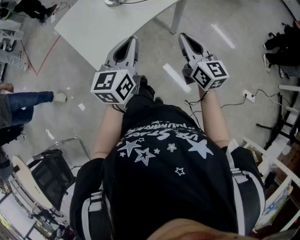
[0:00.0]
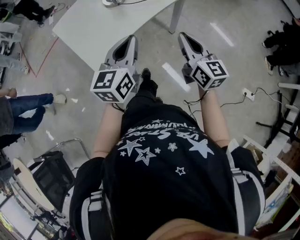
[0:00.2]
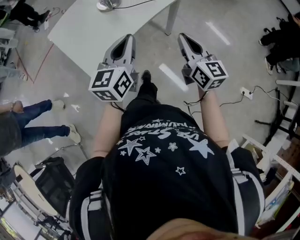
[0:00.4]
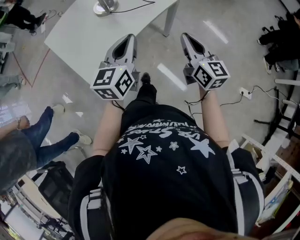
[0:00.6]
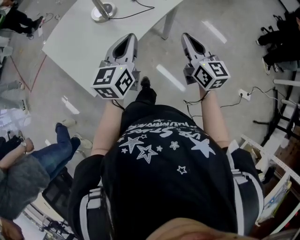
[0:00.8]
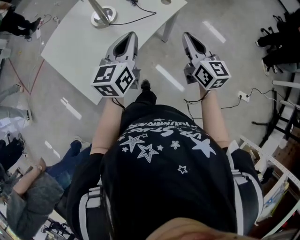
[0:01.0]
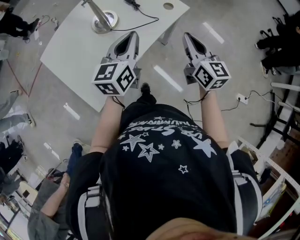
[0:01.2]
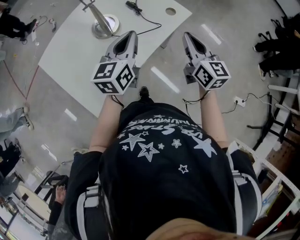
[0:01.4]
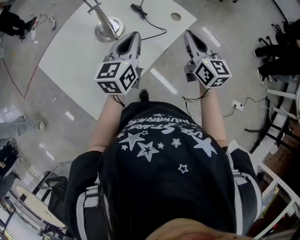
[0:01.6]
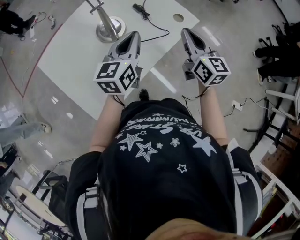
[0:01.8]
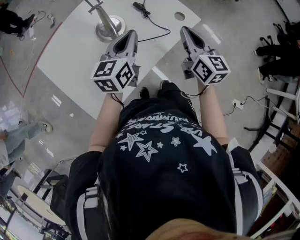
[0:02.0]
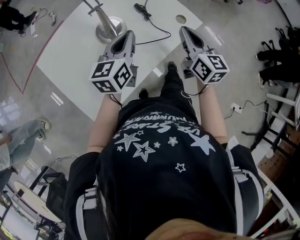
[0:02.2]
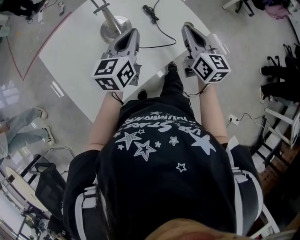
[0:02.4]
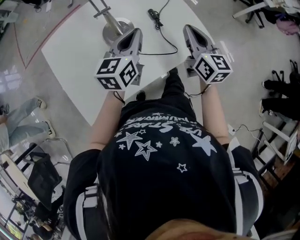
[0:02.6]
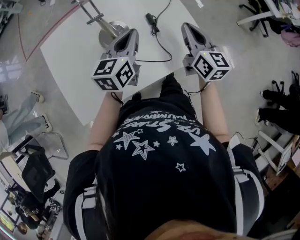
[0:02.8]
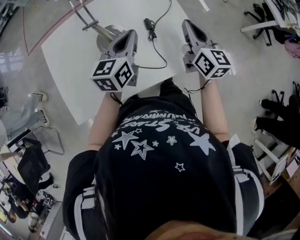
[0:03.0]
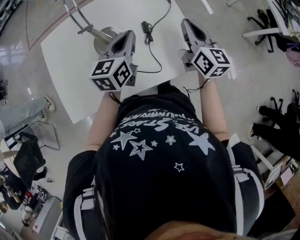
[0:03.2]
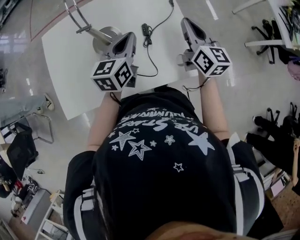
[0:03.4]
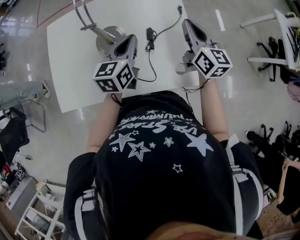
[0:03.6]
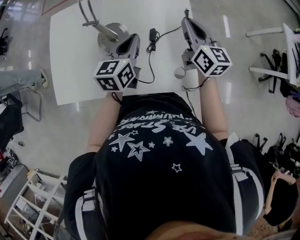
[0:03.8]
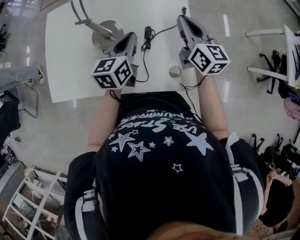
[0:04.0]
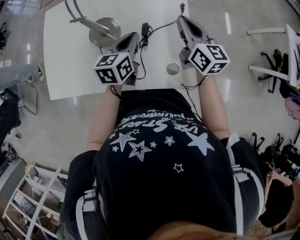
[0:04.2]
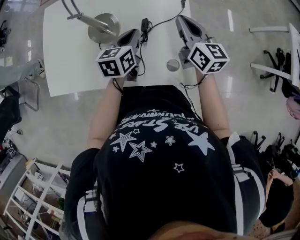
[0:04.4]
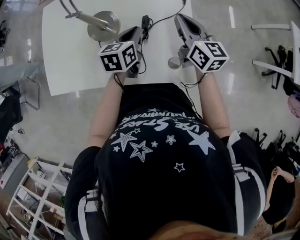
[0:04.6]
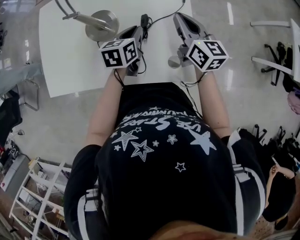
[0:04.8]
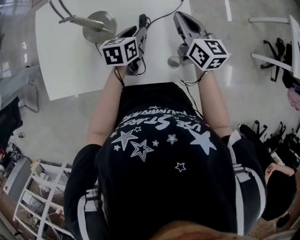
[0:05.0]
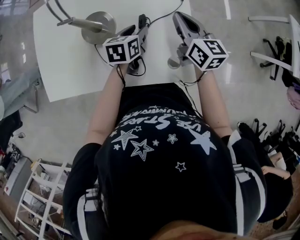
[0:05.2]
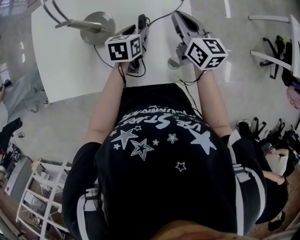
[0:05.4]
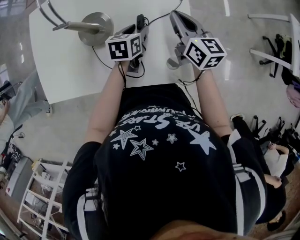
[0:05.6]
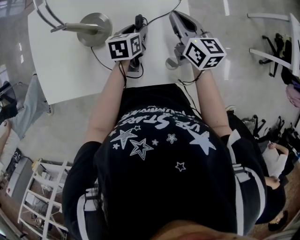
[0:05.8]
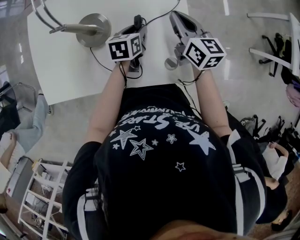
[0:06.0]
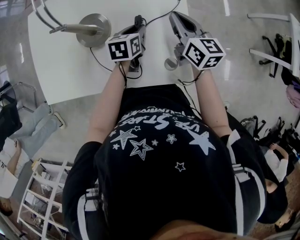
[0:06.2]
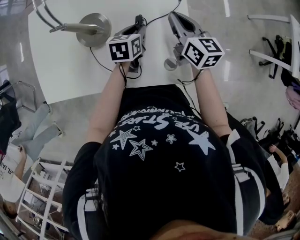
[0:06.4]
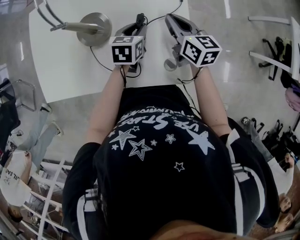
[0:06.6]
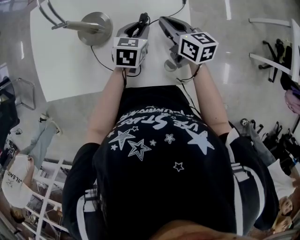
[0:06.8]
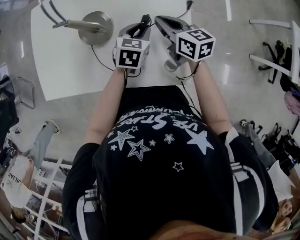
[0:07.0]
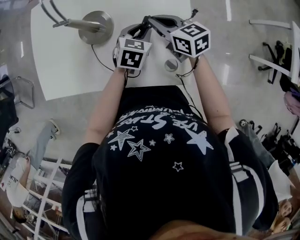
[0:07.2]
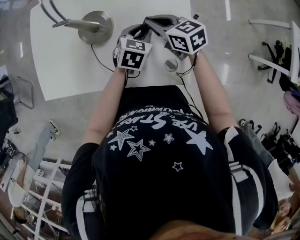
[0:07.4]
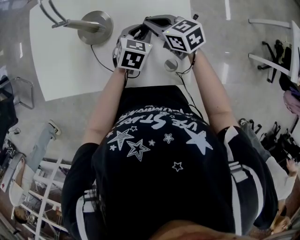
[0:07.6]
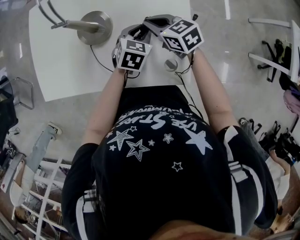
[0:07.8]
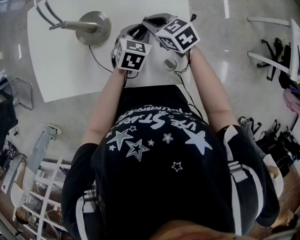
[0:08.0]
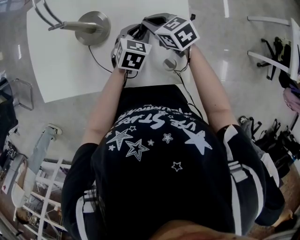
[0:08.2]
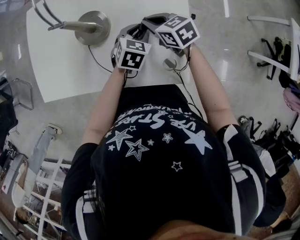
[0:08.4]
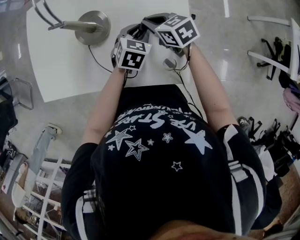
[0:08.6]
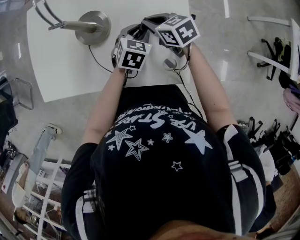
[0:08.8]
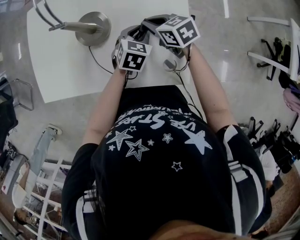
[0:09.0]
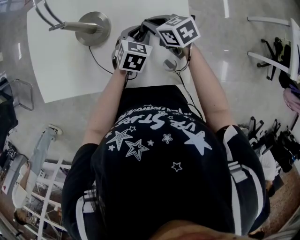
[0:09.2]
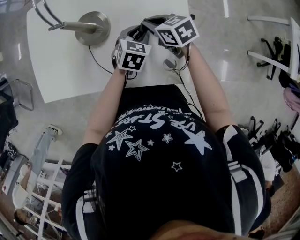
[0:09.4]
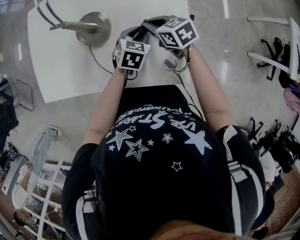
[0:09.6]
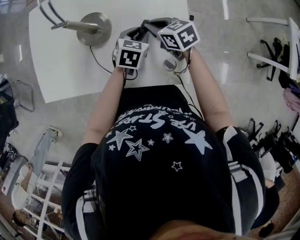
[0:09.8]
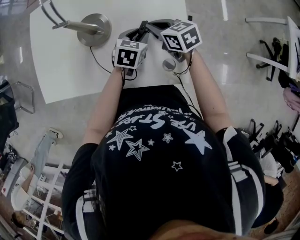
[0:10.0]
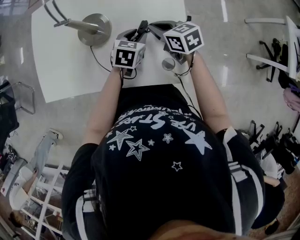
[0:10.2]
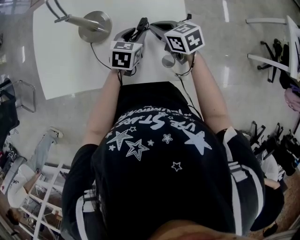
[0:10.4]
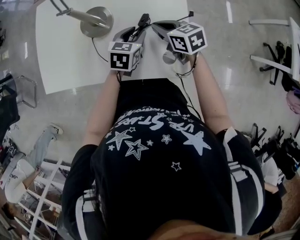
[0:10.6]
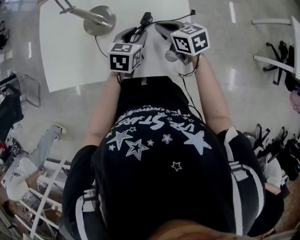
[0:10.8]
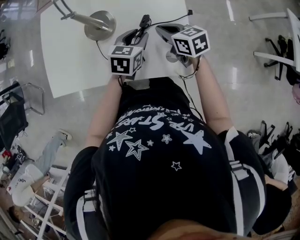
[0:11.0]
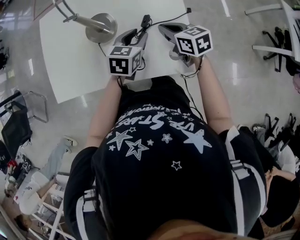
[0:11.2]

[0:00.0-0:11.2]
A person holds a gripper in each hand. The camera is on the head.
0:00.0 to 0:01.6: The grippers both shift forward by some 30 cm.
0:01.6 to 0:03.2: The right gripper shifts by about 25 cm, and swivels roughly 30 degrees. Meanwhile the left gripper changes place by roughly 15 cm, and swivels about 30 degrees.
0:03.2 to 0:04.8: The right gripper is displaced forward and downward by approximately 10 cm, and turns by about 20 degrees. The left gripper goes roughly 15 cm downward, and turns by about 30 degrees.
0:04.8 to 0:06.4: The left gripper goes some 5 cm downward, and opens its fingers.
0:06.4 to 0:08.0: The right gripper shifts some 10 cm to the left and downward, and turns by approximately 40 degrees. Meanwhile the left gripper turns by approximately 30 degrees.
0:08.0 to 0:09.6: The grippers make only small movements.
0:09.6 to 0:11.2: The right gripper moves backward, about 5 cm; the left gripper moves upward, some 10 cm.

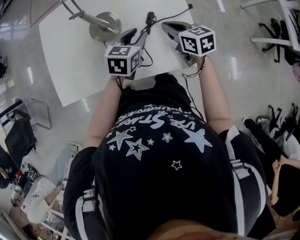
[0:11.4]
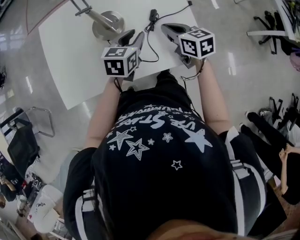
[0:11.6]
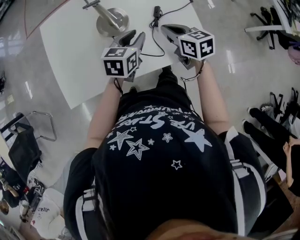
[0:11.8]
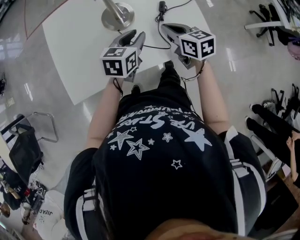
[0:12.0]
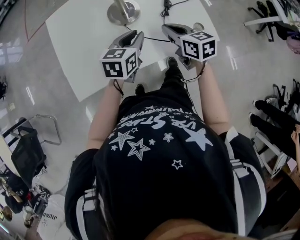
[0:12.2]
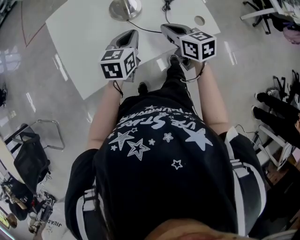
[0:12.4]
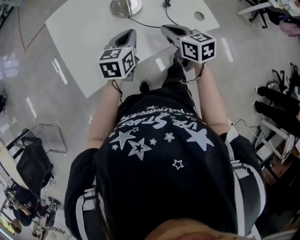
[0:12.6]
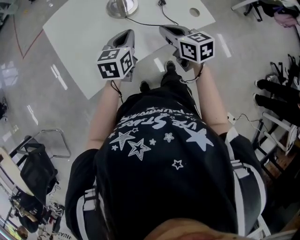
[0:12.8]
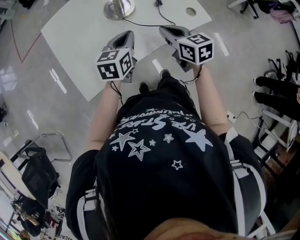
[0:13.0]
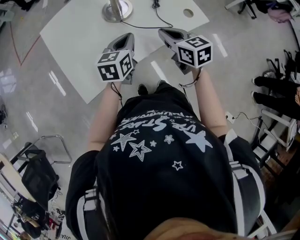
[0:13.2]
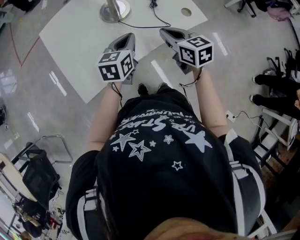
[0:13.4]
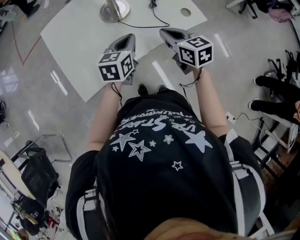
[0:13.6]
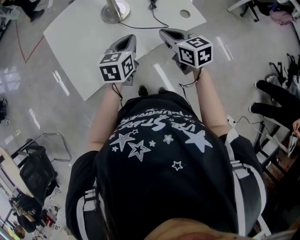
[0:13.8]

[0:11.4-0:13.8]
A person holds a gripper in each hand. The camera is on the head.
0:11.4 to 0:12.6: The two grippers go some 25 cm to the left and backward. The left gripper closes.
0:12.6 to 0:13.8: Both grippers travel together to the right, about 5 cm.

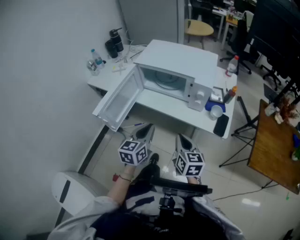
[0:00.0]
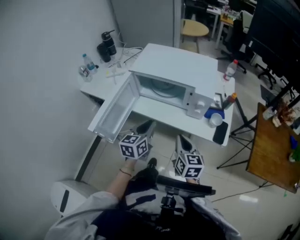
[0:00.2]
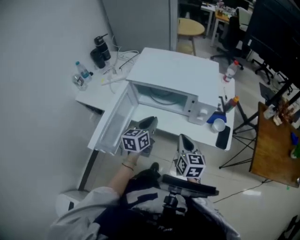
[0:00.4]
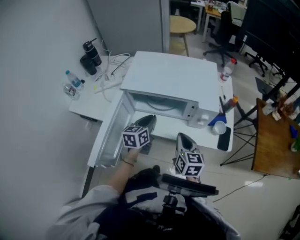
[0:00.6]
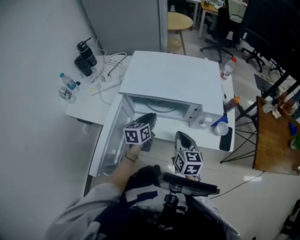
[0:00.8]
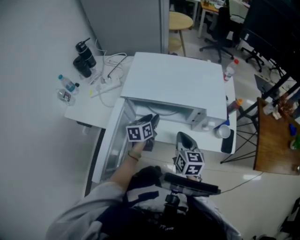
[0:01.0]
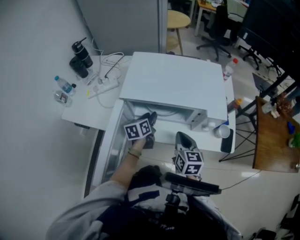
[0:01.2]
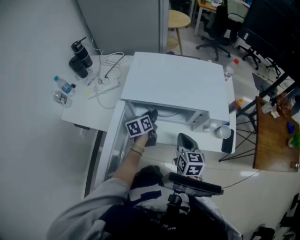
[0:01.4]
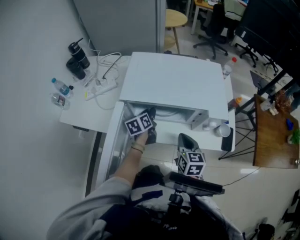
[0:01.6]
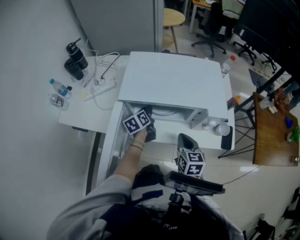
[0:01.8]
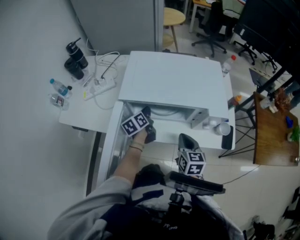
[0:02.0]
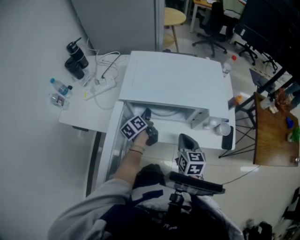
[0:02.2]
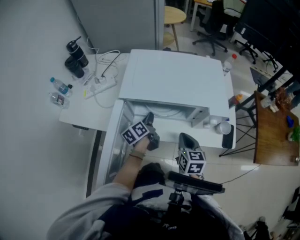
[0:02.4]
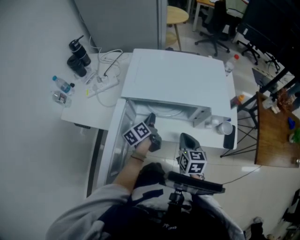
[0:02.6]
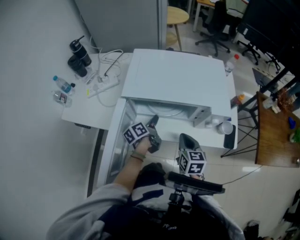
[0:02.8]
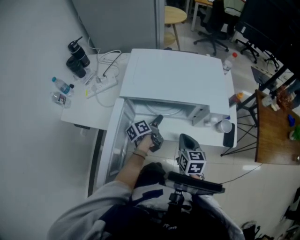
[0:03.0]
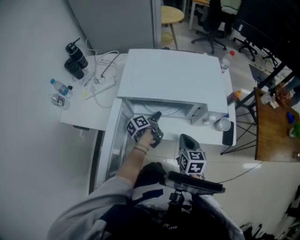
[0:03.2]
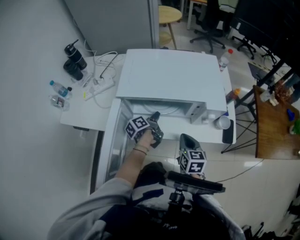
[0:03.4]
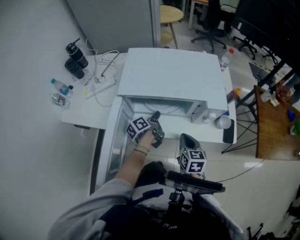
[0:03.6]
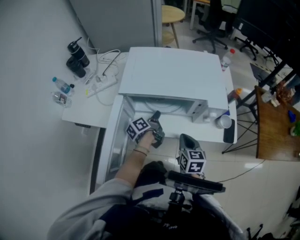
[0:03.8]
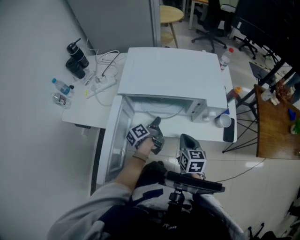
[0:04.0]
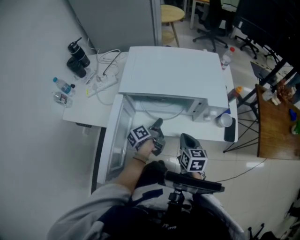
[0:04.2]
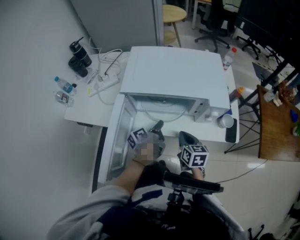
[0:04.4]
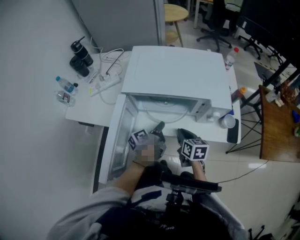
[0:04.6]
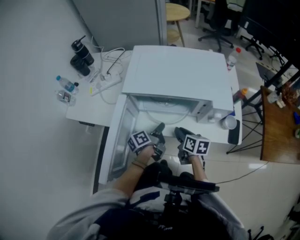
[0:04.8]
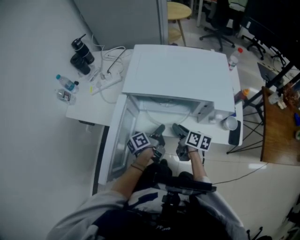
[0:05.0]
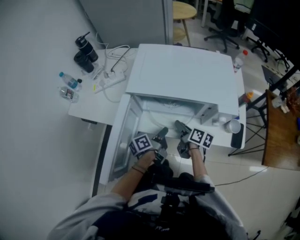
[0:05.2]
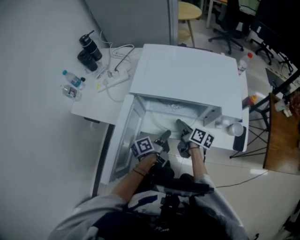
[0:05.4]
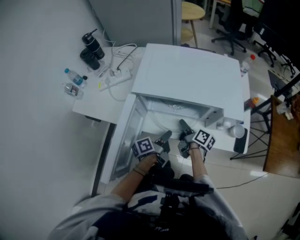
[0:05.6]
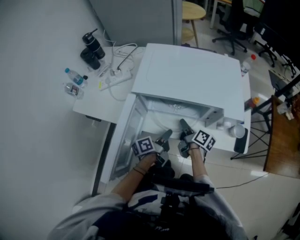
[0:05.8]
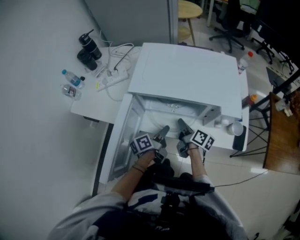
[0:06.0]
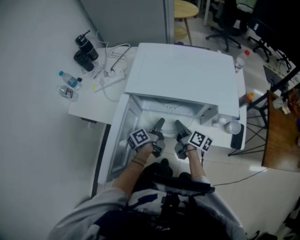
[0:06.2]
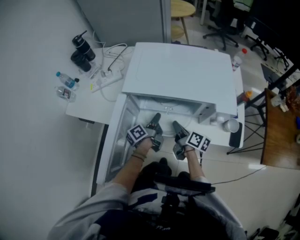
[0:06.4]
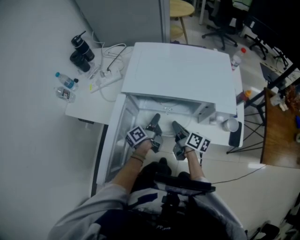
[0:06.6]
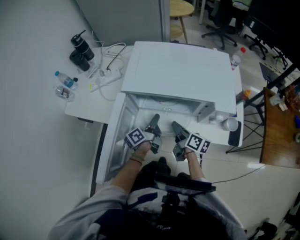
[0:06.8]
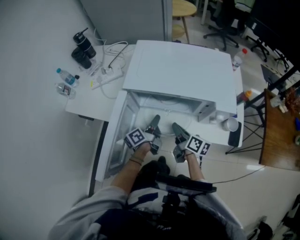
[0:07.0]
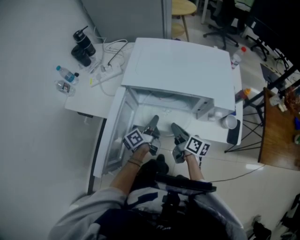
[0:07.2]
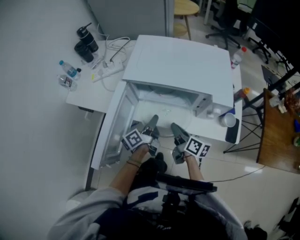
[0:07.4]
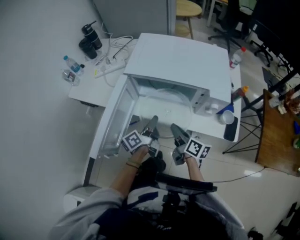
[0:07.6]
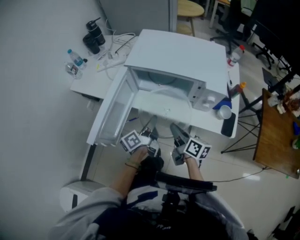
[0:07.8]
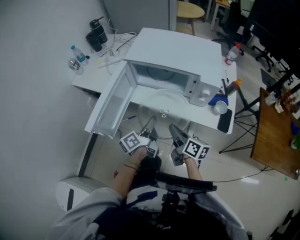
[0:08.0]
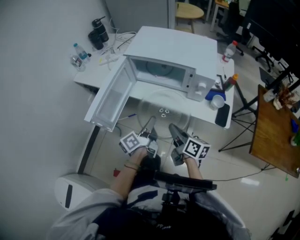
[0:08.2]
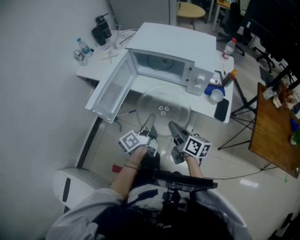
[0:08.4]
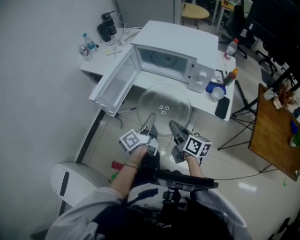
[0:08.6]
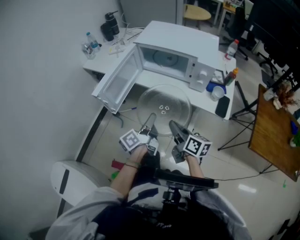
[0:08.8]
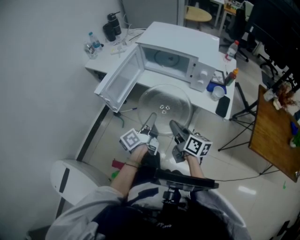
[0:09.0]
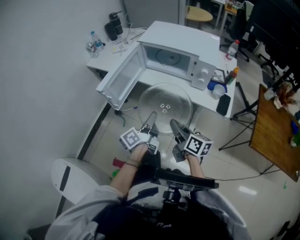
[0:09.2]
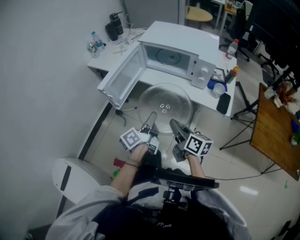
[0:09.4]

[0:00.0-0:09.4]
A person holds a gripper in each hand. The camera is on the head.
0:00.0 to 0:01.6: The right gripper goes about 25 cm forward and to the left, while the left gripper moves forward, approximately 35 cm, rotates roughly 30 degrees, and opens its fingers.
0:01.6 to 0:03.2: The left gripper moves approximately 5 cm, turns by about 40 degrees, and closes, then reopens.
0:03.2 to 0:04.8: The right gripper moves downward, approximately 5 cm, rotates some 30 degrees, and opens; the left gripper is displaced backward by about 10 cm, and closes.
0:04.8 to 0:06.2: The left gripper opens its fingers. The right gripper turns by roughly 30 degrees.
0:06.2 to 0:07.8: The left gripper is displaced backward and upward by roughly 15 cm; the right gripper is displaced backward by roughly 15 cm.
0:07.8 to 0:09.4: The two grippers go about 20 cm backward.
